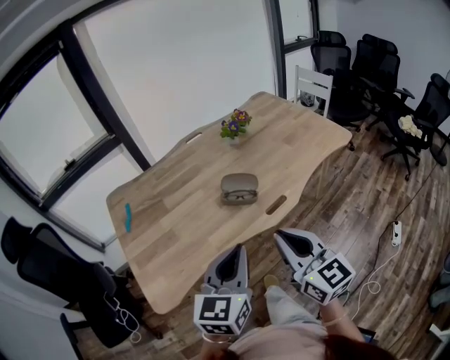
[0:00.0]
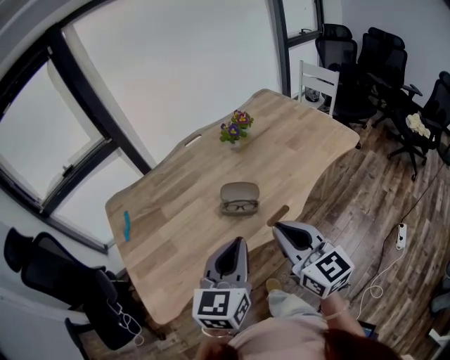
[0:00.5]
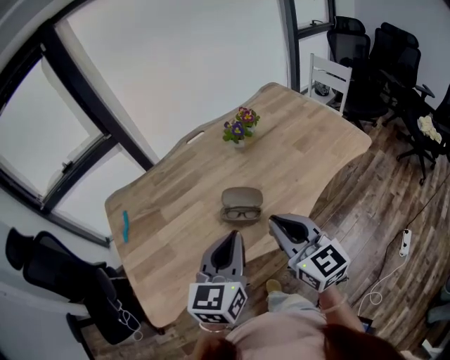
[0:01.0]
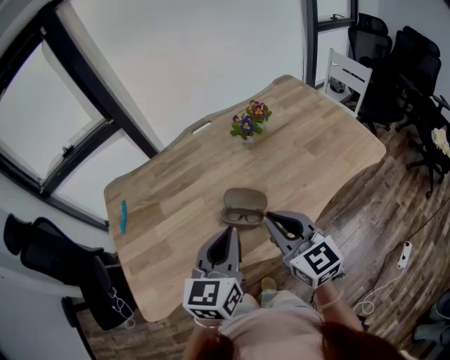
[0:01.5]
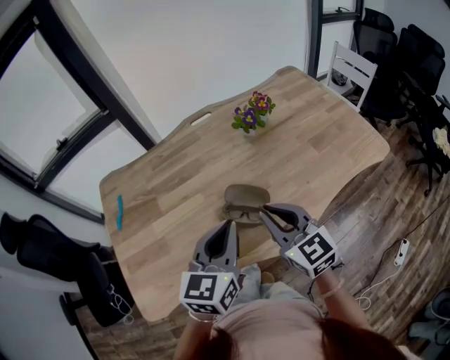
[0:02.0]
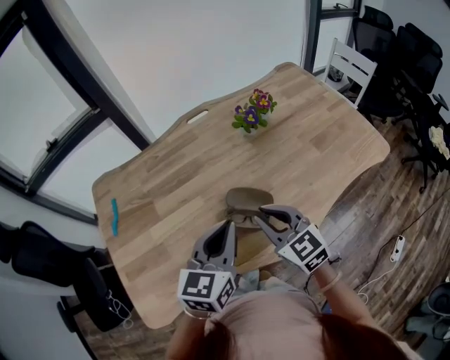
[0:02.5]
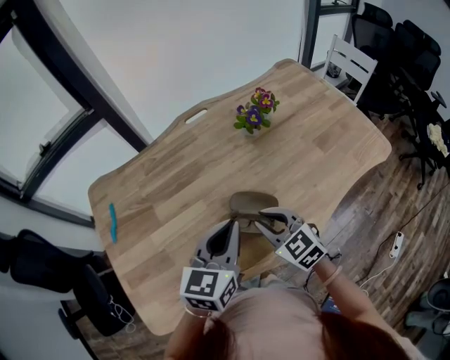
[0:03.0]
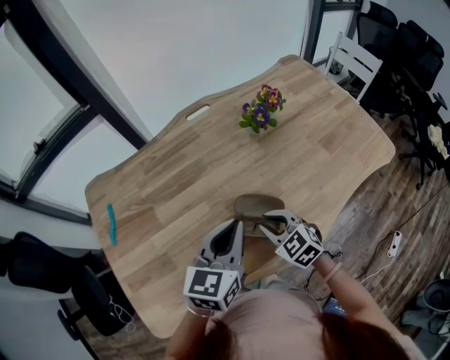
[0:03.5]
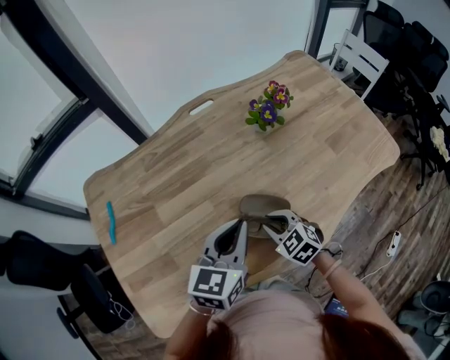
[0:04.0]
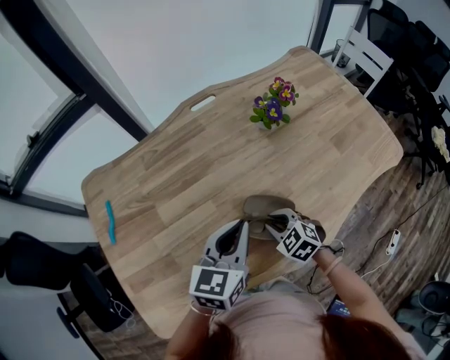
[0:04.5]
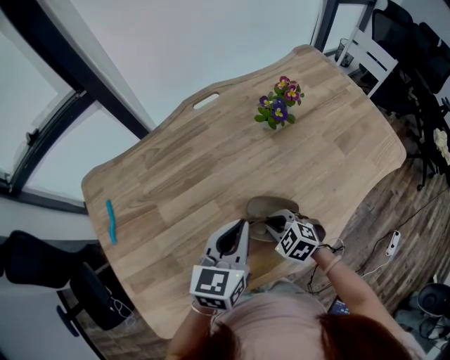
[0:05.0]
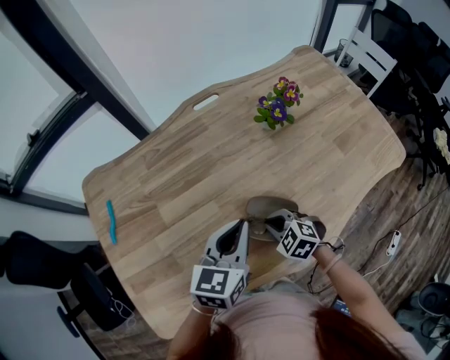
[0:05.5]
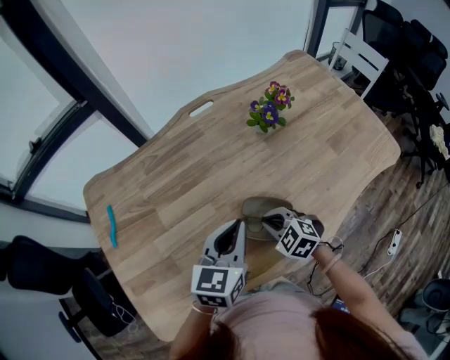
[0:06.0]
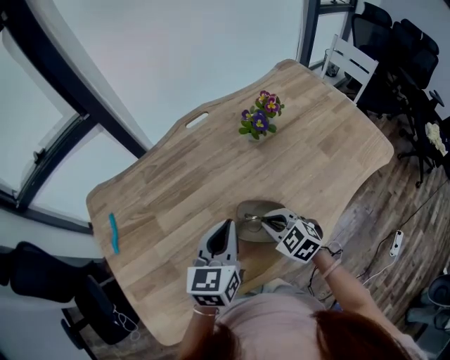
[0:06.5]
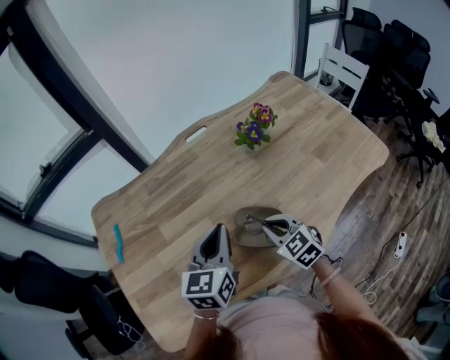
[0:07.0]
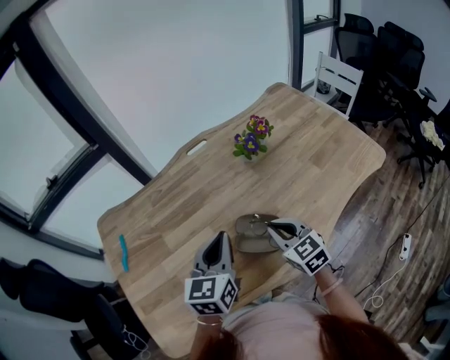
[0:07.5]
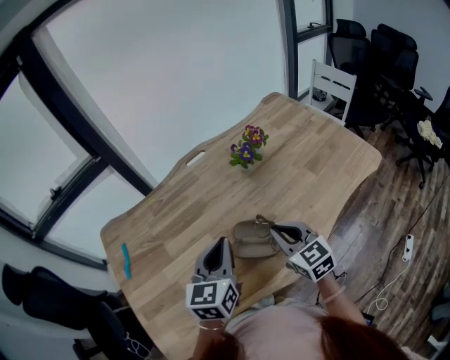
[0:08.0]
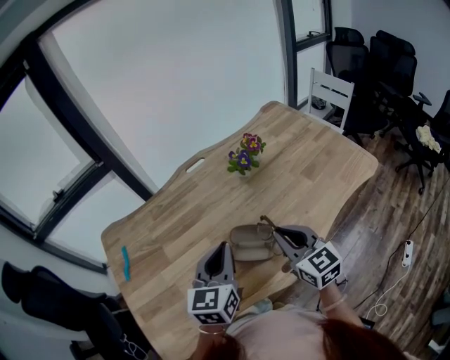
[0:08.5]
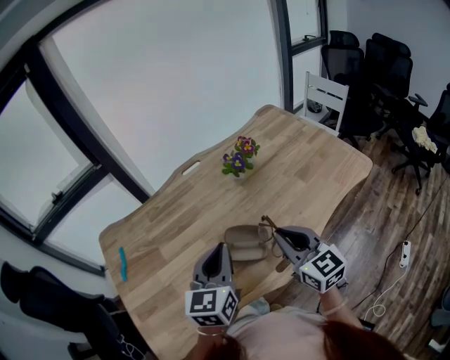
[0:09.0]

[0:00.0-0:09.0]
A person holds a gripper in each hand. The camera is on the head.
0:00.0 to 0:02.0: The grippers both shift forward by about 25 cm. The right gripper changes its angle by about 20 degrees.
0:02.0 to 0:04.5: The right gripper travels downward by some 25 cm, and tilts its fingers about 40 degrees downward; the left gripper heads forward and downward, covering about 15 cm.
0:04.5 to 0:07.0: The right gripper moves upward, roughly 10 cm.
0:07.0 to 0:09.0: The left gripper moves upward and backward, about 10 cm; the right gripper is displaced upward and to the right by roughly 20 cm, and rotates roughly 30 degrees.

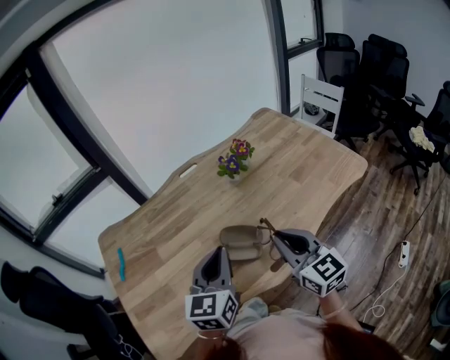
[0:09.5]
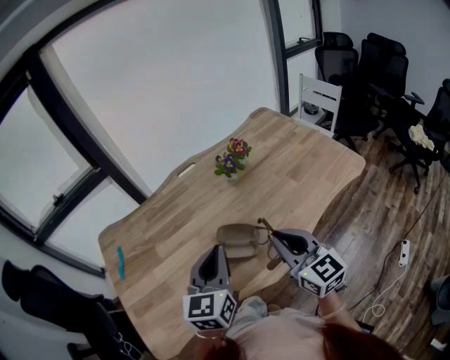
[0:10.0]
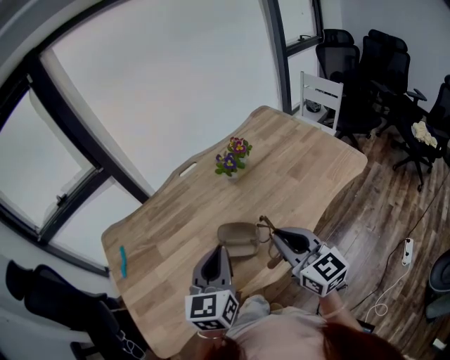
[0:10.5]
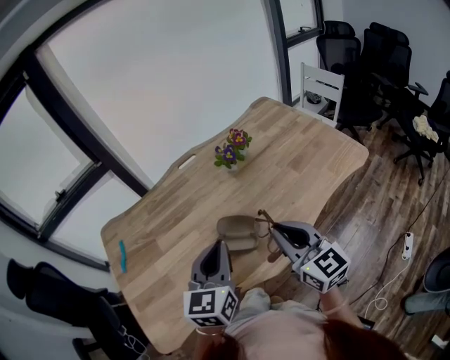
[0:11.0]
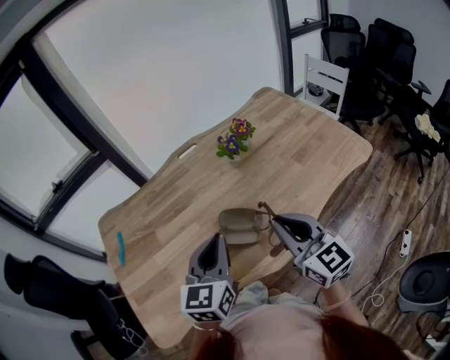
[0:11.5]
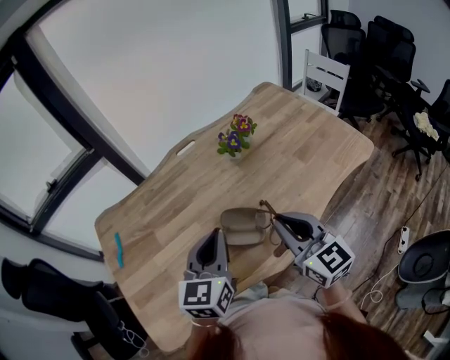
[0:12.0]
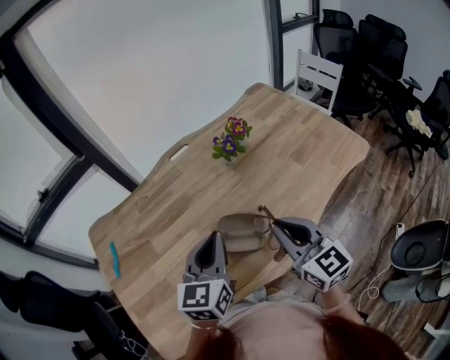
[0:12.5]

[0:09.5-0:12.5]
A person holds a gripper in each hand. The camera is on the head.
0:09.5 to 0:11.0: There are only small adjustments of the grippers.
0:11.0 to 0:12.5: The left gripper goes roughly 5 cm forward; the right gripper moves approximately 5 cm.

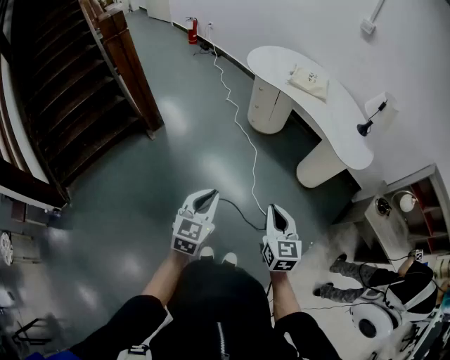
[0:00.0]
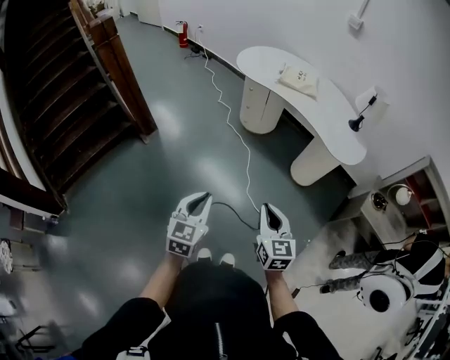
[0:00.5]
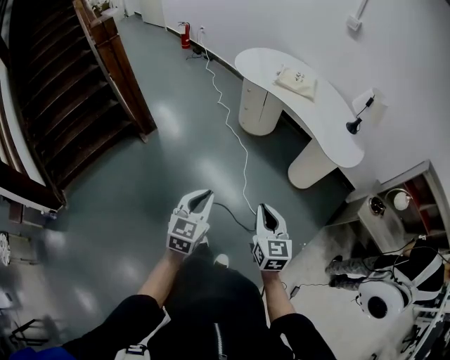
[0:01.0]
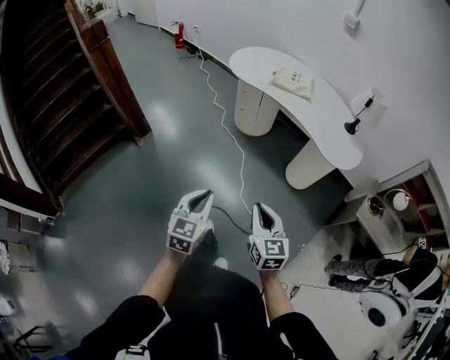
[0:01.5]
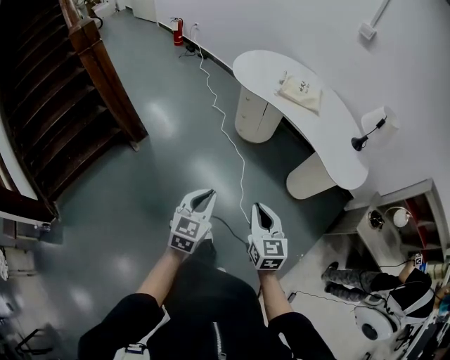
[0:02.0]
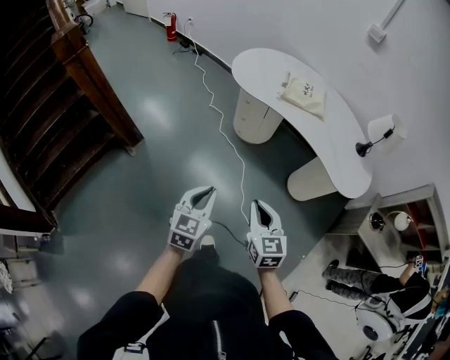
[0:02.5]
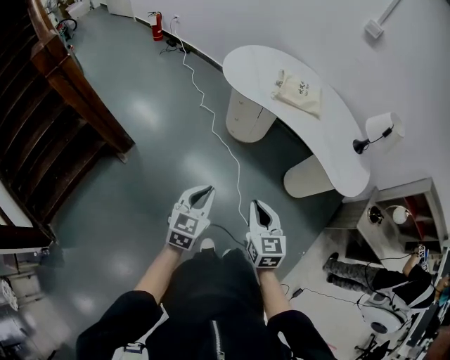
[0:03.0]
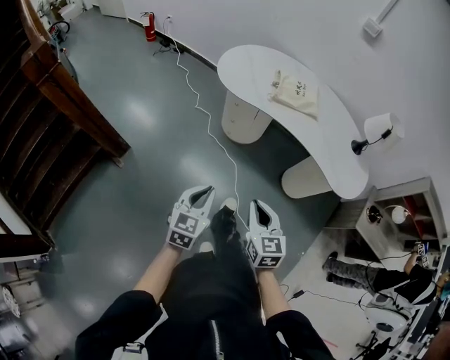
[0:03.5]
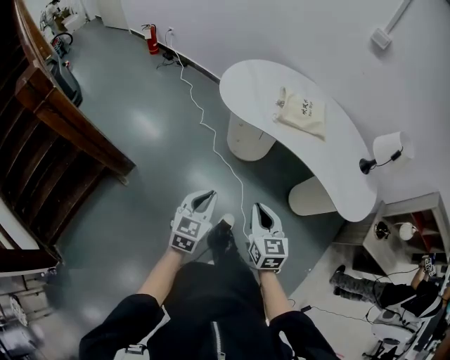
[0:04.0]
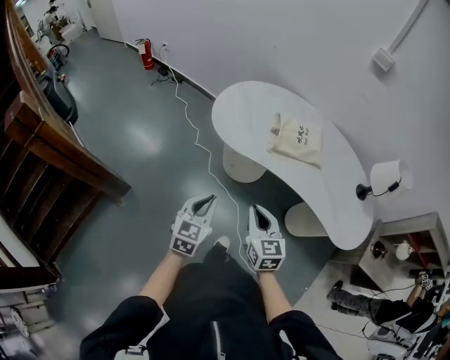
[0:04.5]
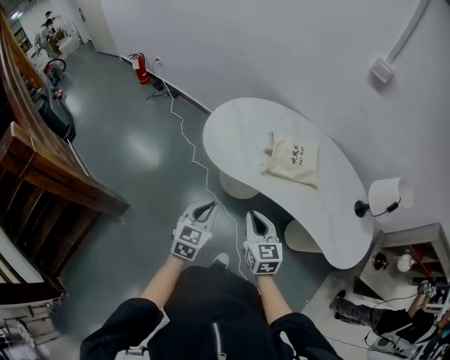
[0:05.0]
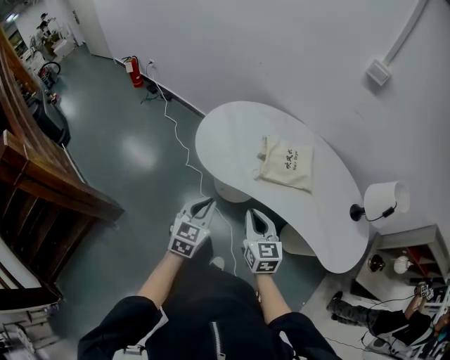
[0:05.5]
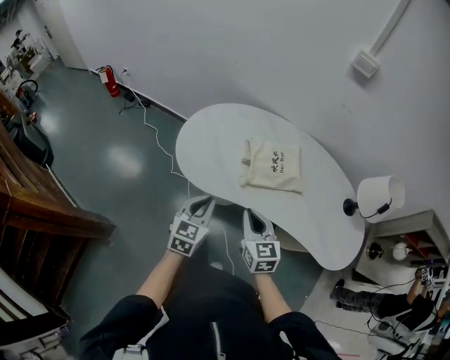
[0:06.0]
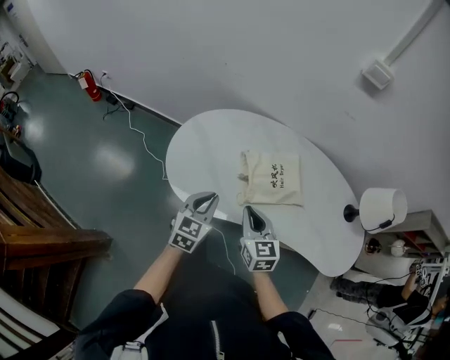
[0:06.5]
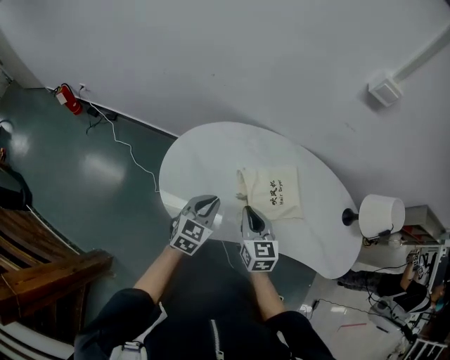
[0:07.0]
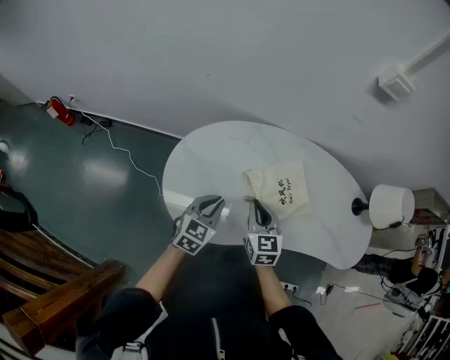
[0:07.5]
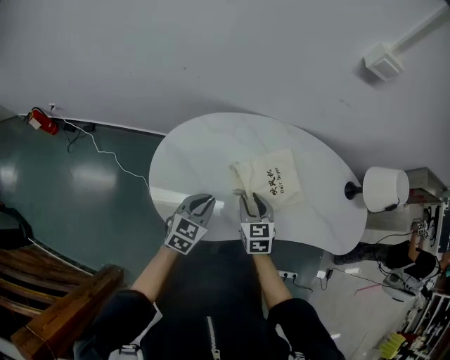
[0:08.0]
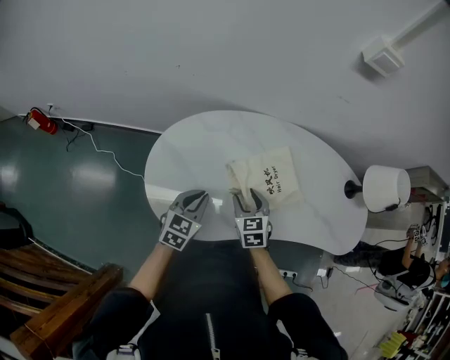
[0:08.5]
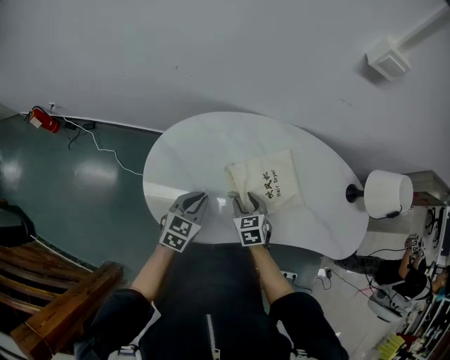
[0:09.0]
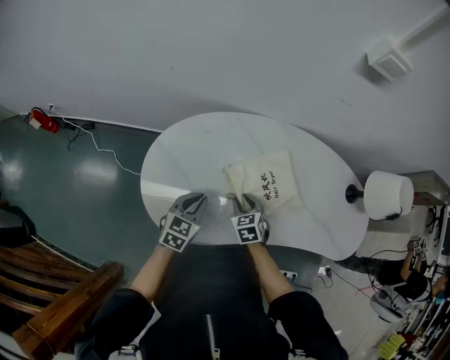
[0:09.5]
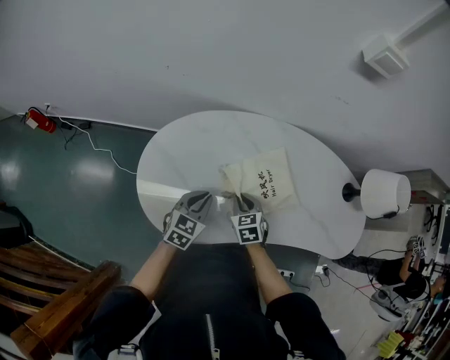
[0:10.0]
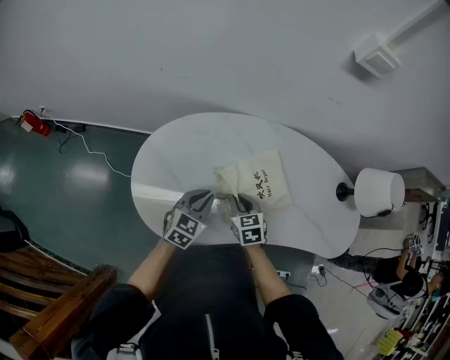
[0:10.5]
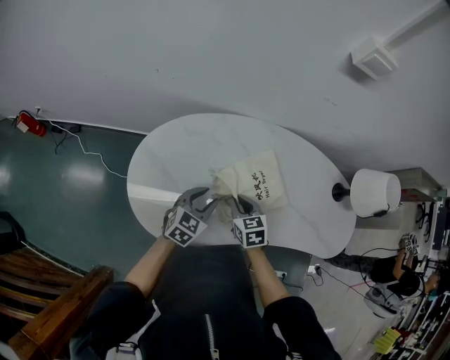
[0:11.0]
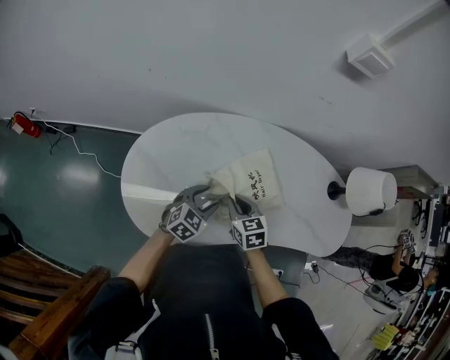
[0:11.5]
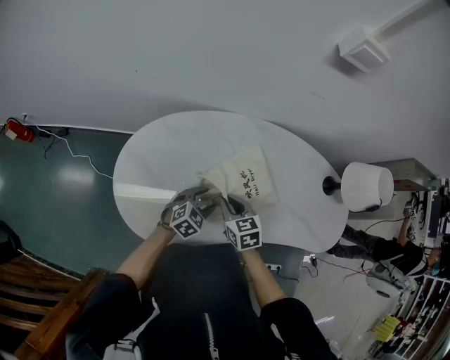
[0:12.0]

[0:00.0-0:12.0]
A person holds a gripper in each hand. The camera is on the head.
0:00.0 to 0:02.0: Both grippers travel together forward, roughly 15 cm.
0:02.0 to 0:04.0: The two grippers go about 25 cm forward.
0:04.0 to 0:06.0: The grippers both shift forward by about 35 cm.
0:06.0 to 0:08.0: The right gripper moves some 25 cm, changes its angle by approximately 30 degrees, and opens up, while the left gripper changes place by approximately 25 cm, and changes its angle by about 30 degrees.
0:08.0 to 0:10.0: The left gripper changes place by roughly 5 cm; the right gripper heads downward, covering about 10 cm, and closes.
0:10.0 to 0:12.0: The left gripper heads to the right and downward, covering about 10 cm, turns by roughly 30 degrees, and opens its fingers; the right gripper shifts by approximately 5 cm.

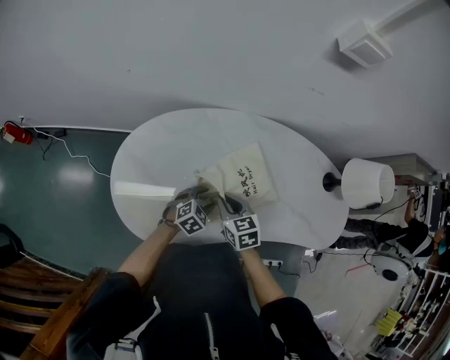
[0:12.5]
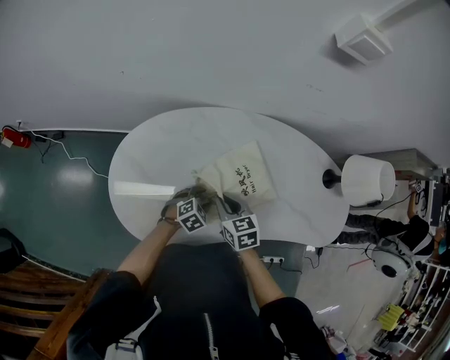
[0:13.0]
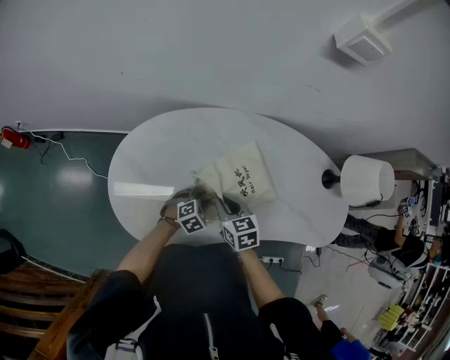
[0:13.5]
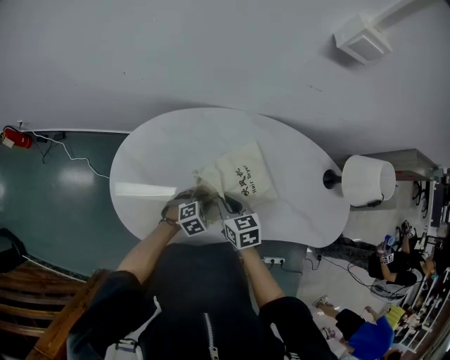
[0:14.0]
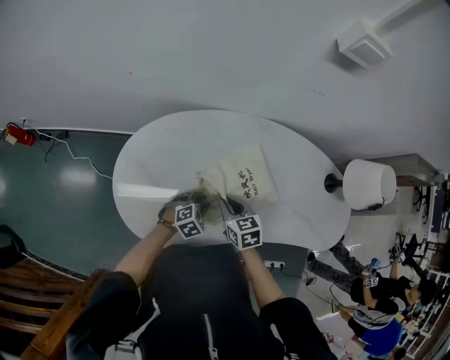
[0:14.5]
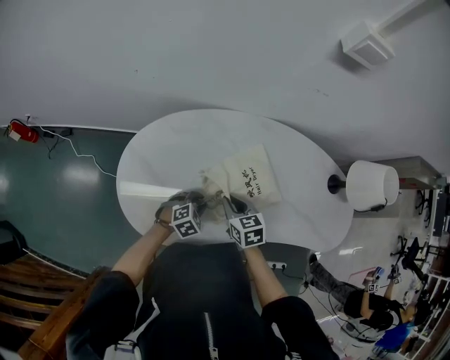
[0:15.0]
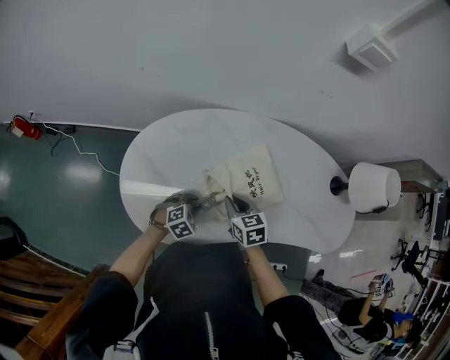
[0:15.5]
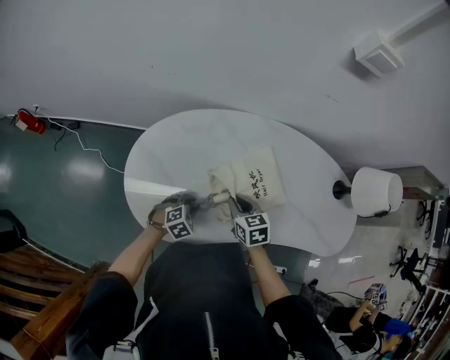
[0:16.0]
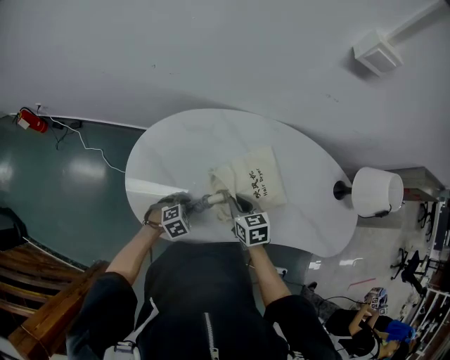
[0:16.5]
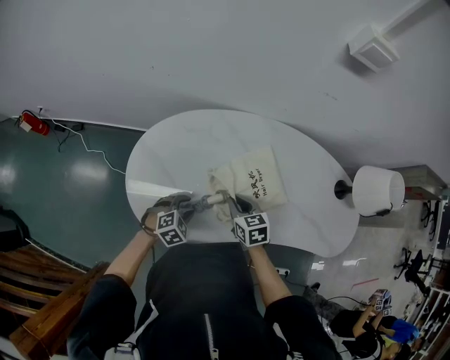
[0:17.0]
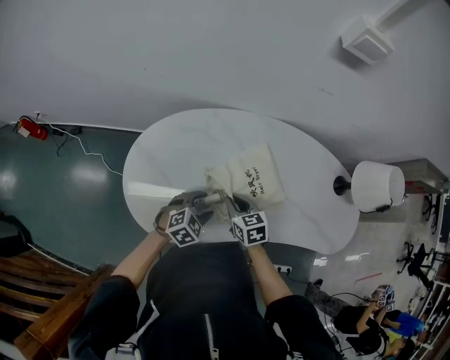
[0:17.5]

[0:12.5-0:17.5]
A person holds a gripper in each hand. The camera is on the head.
0:12.5 to 0:15.0: The left gripper closes up.
0:15.0 to 0:17.5: The left gripper heads upward, covering approximately 5 cm, and opens up.
